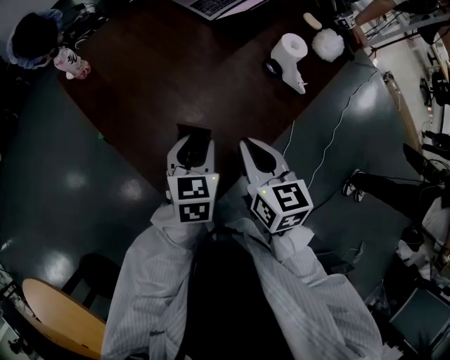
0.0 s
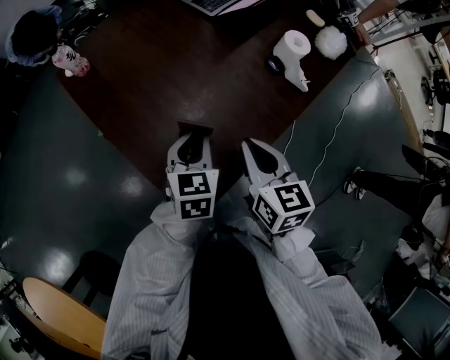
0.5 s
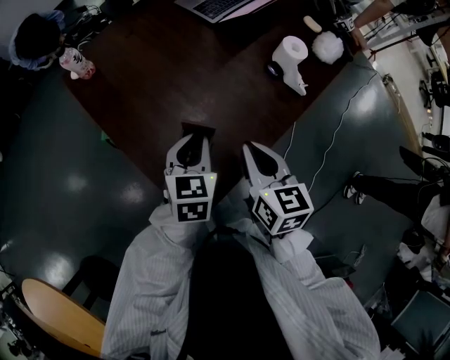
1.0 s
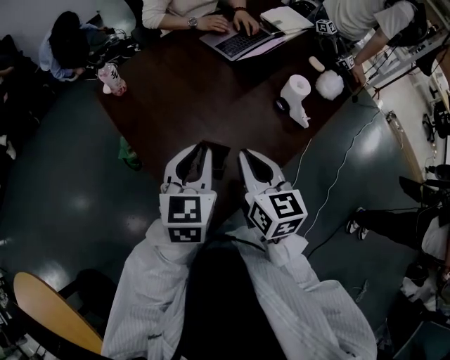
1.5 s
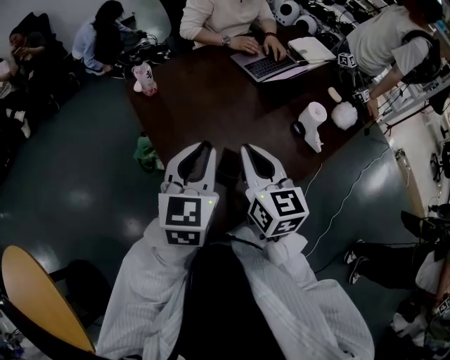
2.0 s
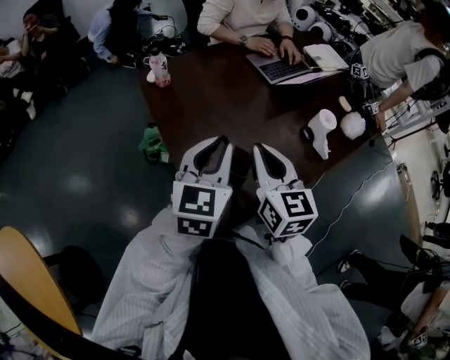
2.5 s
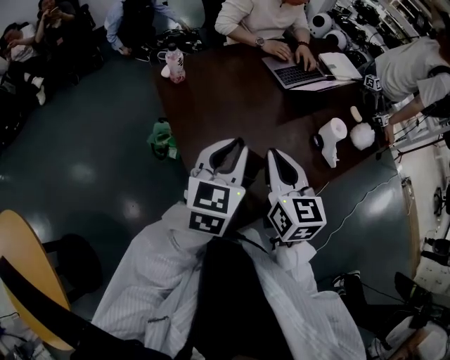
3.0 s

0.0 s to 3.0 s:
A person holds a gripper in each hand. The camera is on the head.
0.0 to 1.5 s: The left gripper travels upward by some 10 cm, while the right gripper shifts roughly 5 cm upward.
1.5 to 3.0 s: The left gripper changes place by approximately 5 cm, while the right gripper goes roughly 10 cm to the left and upward.

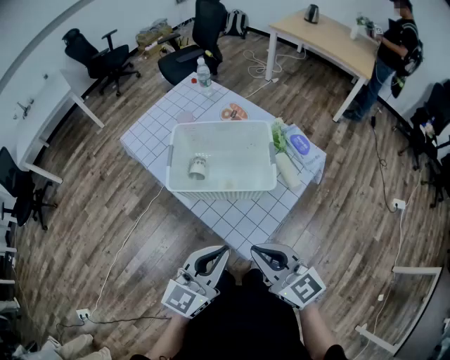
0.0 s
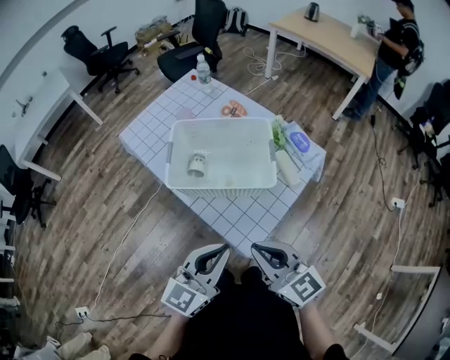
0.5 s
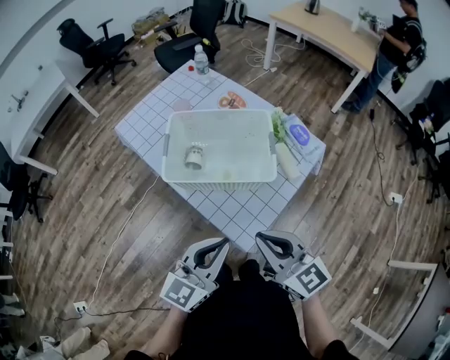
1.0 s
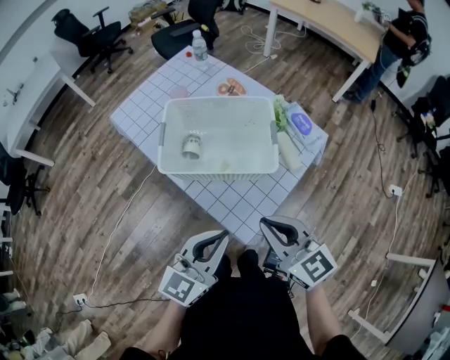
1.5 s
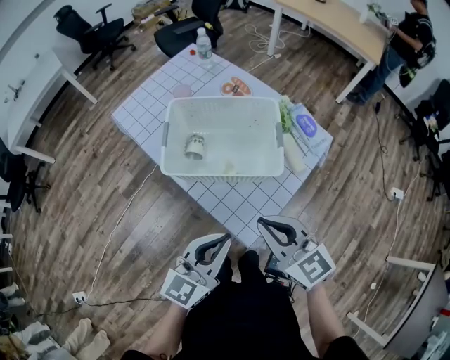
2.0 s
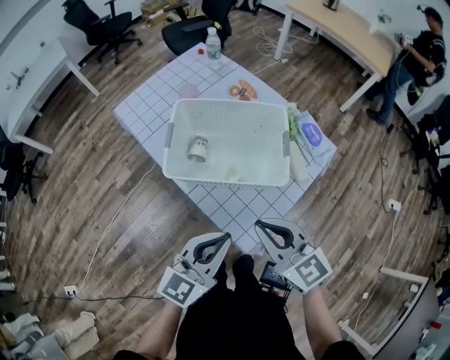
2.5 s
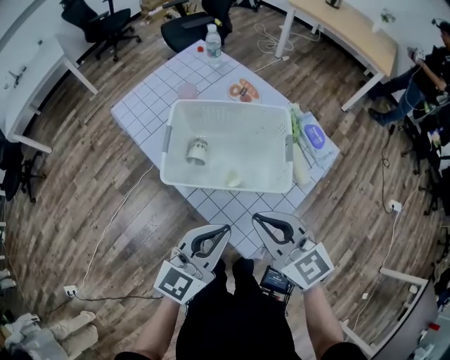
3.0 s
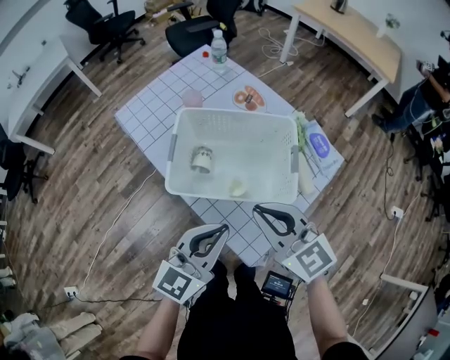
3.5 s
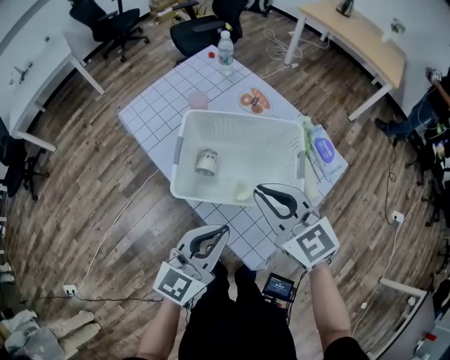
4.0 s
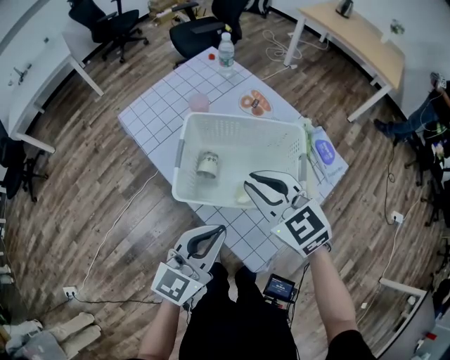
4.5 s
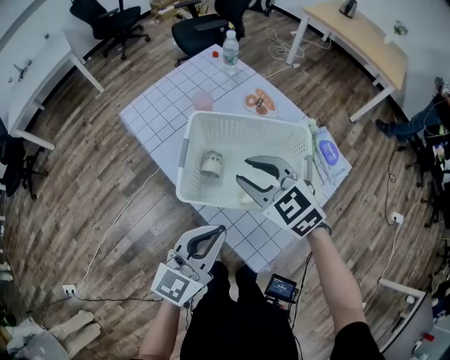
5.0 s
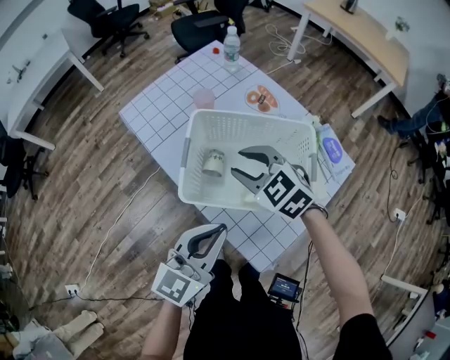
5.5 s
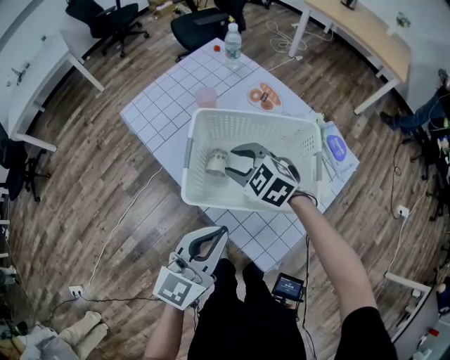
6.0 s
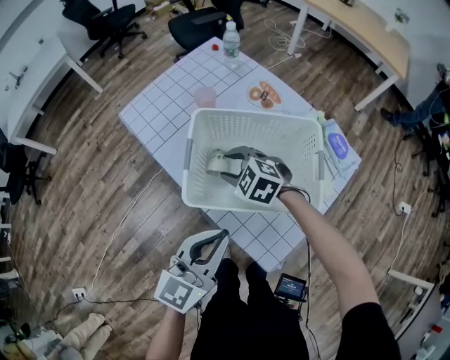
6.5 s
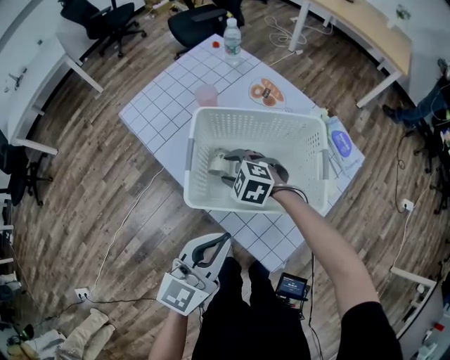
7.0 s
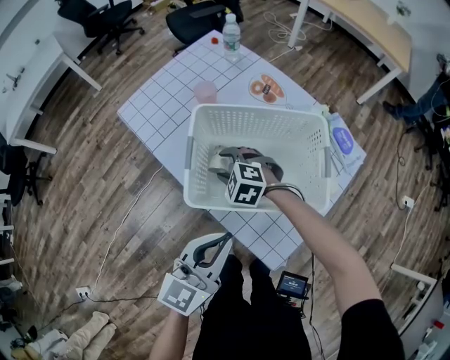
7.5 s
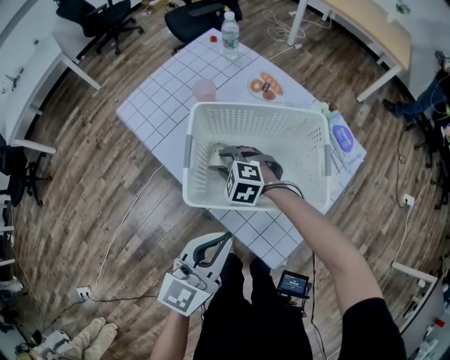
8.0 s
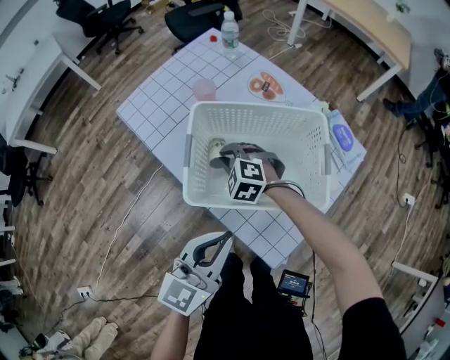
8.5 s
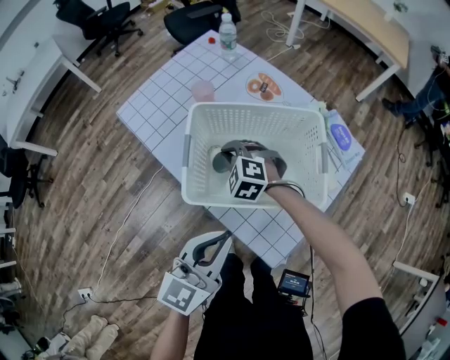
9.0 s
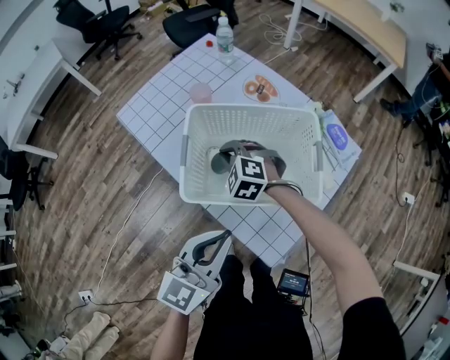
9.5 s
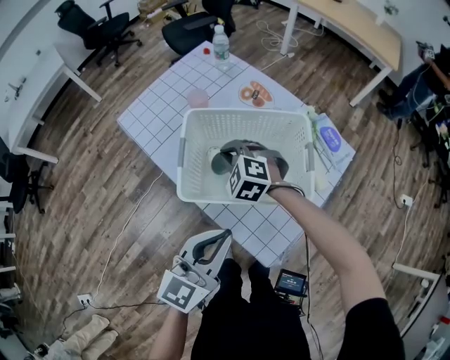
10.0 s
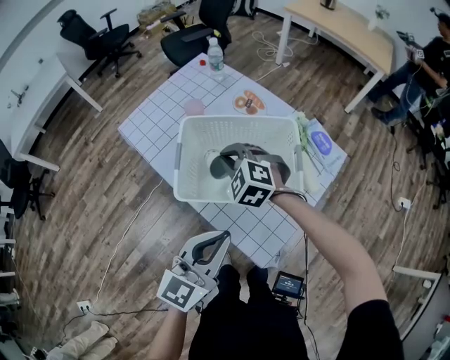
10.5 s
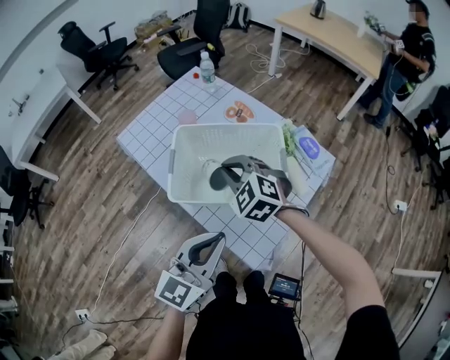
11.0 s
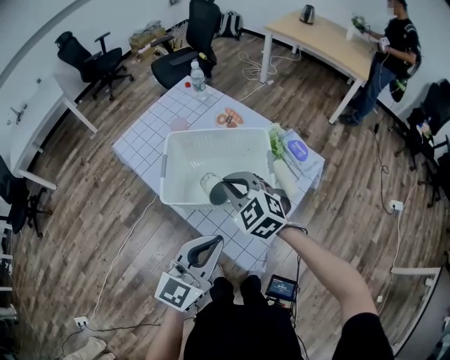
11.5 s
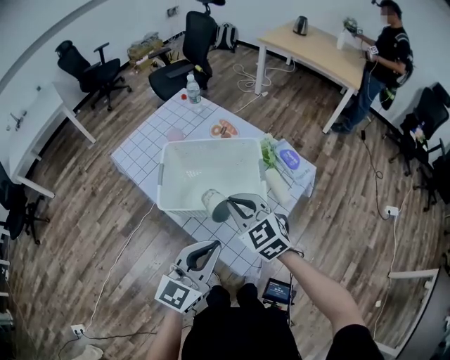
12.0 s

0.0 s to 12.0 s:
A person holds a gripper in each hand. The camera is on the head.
0.0 to 2.0 s: The right gripper moves forward, about 5 cm.
2.0 to 4.0 s: Both grippers move forward, roughly 15 cm.
4.0 to 6.0 s: The right gripper travels downward, forward and to the left by about 20 cm, turns by about 30 degrees, and opens its fingers.
6.0 to 8.0 s: The right gripper heads downward, covering approximately 10 cm.
8.0 to 10.0 s: The right gripper heads upward, covering about 10 cm, and closes up.
10.0 to 12.0 s: The right gripper shifts about 25 cm backward, upward and to the right, and swivels approximately 30 degrees, while the left gripper shifts some 5 cm to the right.

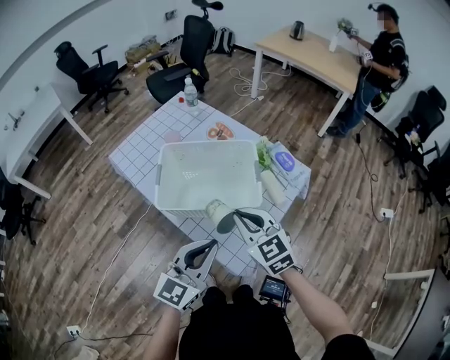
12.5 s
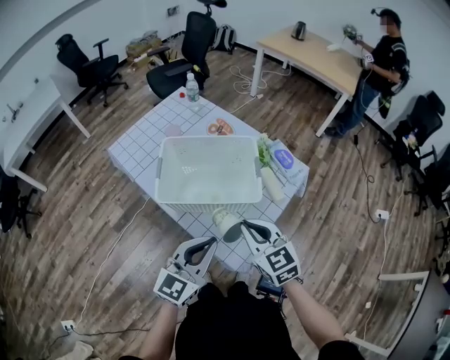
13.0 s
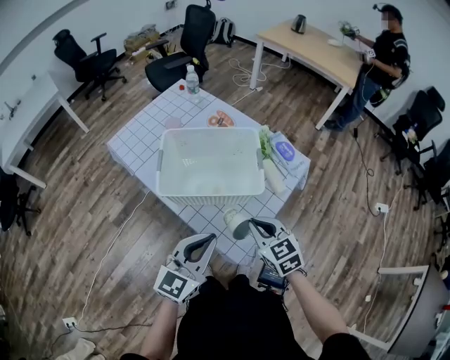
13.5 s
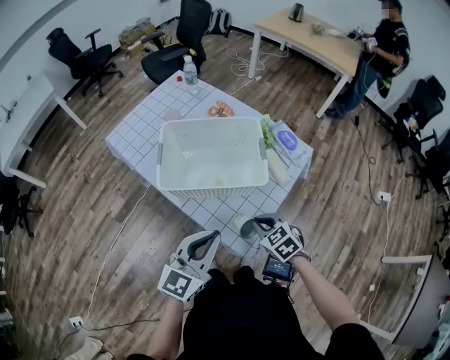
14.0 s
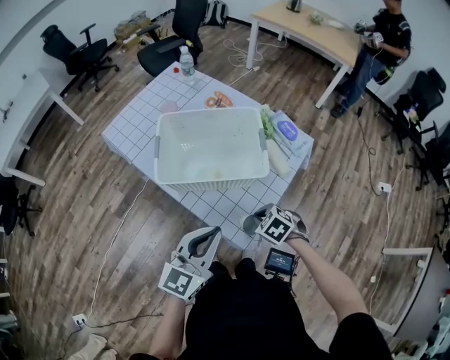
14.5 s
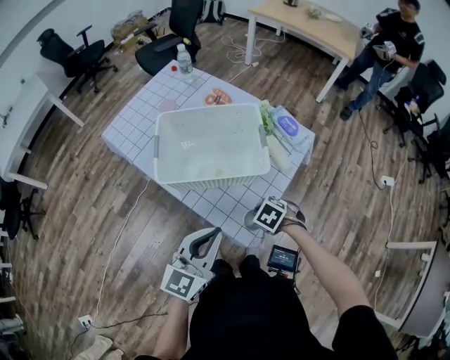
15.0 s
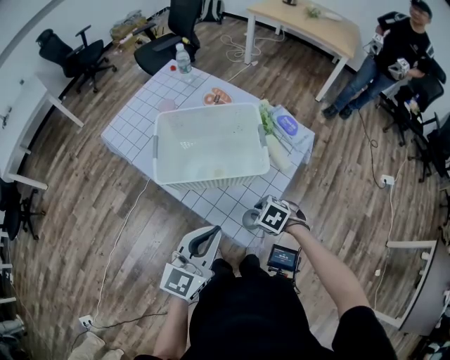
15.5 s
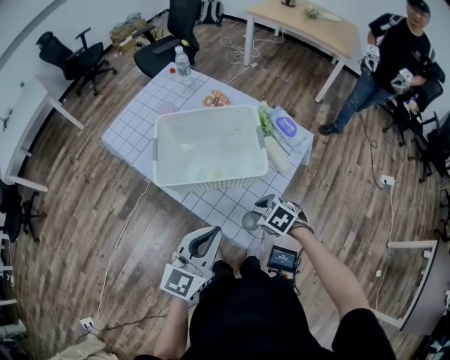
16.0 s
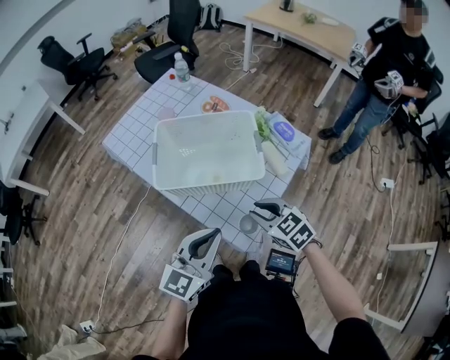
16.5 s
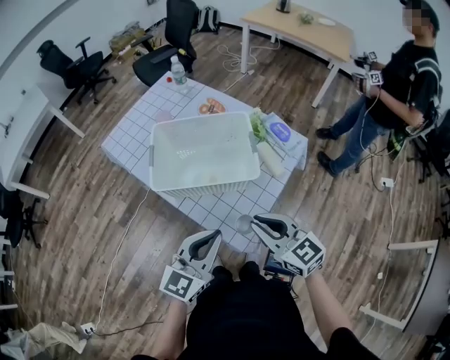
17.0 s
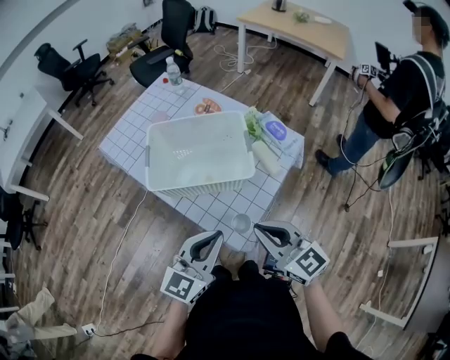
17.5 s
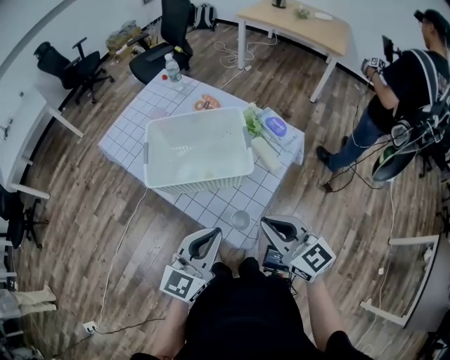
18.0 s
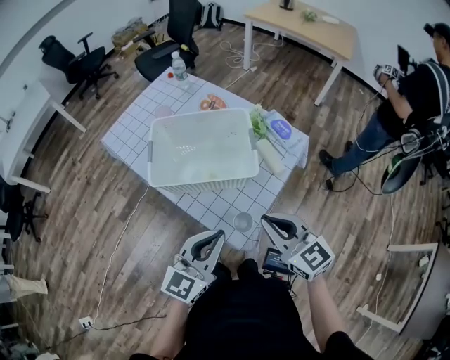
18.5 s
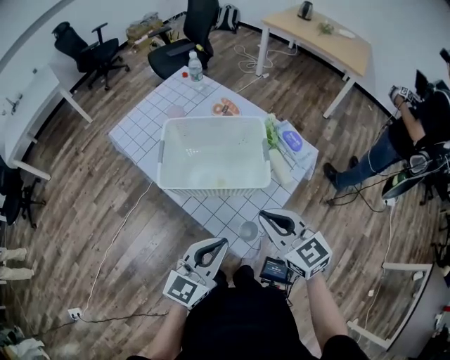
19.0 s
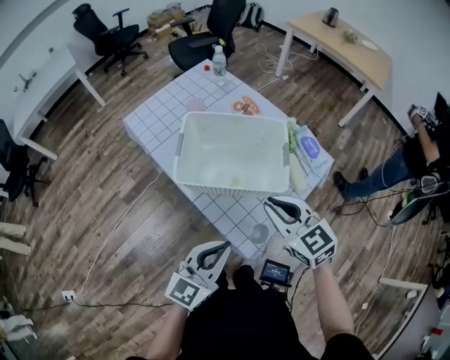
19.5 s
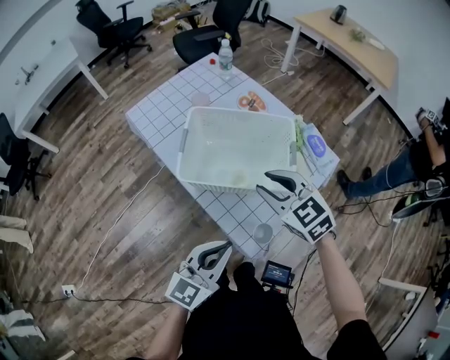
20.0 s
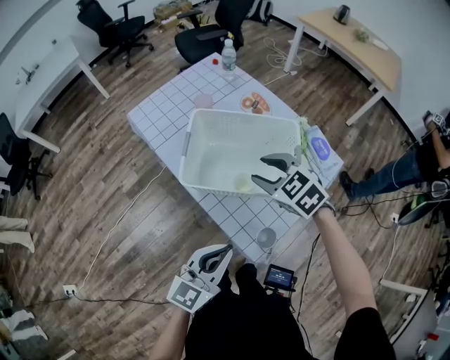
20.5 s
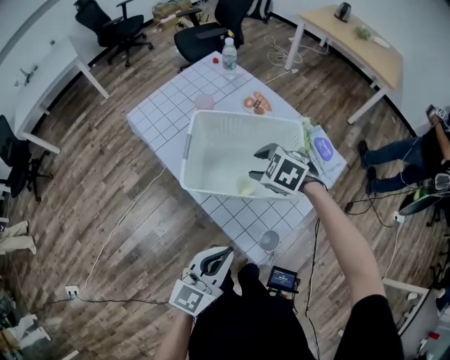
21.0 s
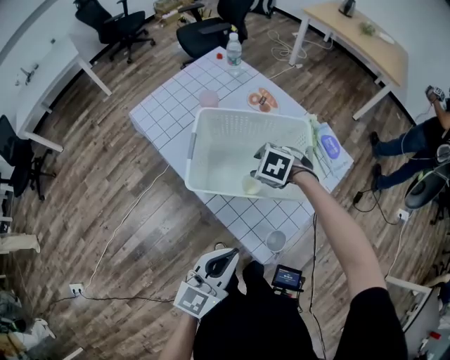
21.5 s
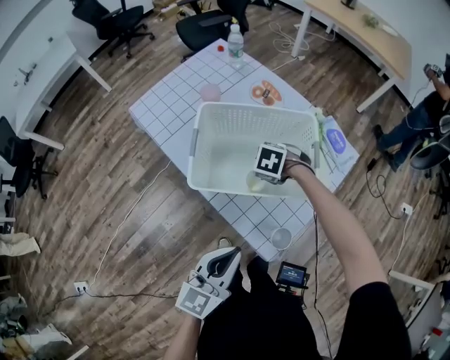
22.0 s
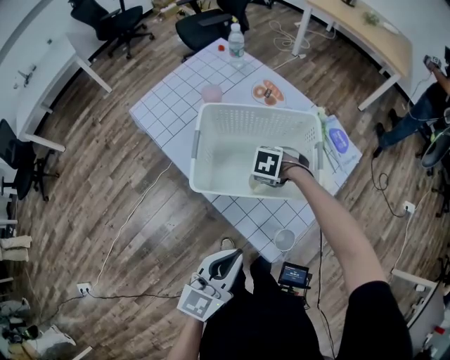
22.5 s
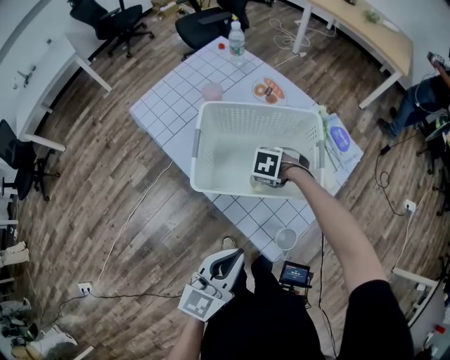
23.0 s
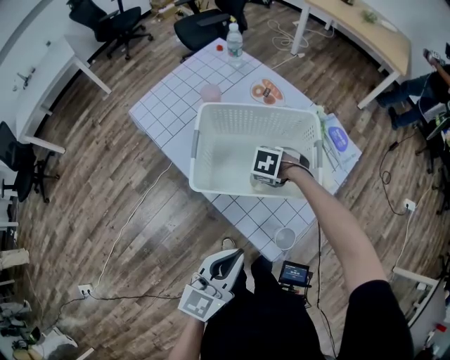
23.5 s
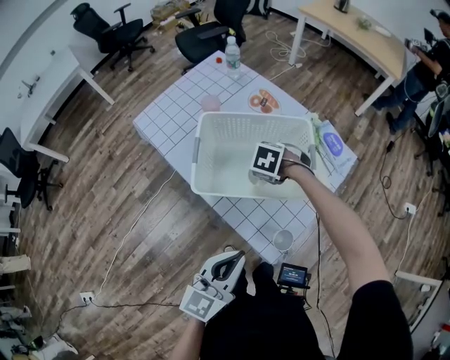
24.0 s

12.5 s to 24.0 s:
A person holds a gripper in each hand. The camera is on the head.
12.5 to 14.5 s: The right gripper shifts roughly 20 cm downward, and angles its fingers downward, by approximately 40 degrees.
14.5 to 16.5 s: The right gripper shifts some 10 cm upward, and rotates approximately 30 degrees.
16.5 to 18.5 s: The right gripper travels upward by about 10 cm, and changes its angle by about 30 degrees.
18.5 to 20.0 s: The left gripper changes place by some 5 cm, while the right gripper is displaced forward and to the left by some 15 cm, swivels some 30 degrees, and opens its fingers.
20.0 to 22.0 s: The right gripper shifts roughly 20 cm downward, and points its fingers some 40 degrees further downward.
22.0 to 24.0 s: The right gripper closes.
